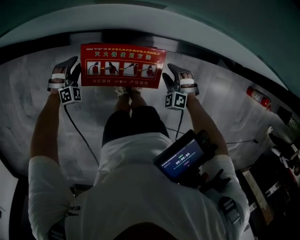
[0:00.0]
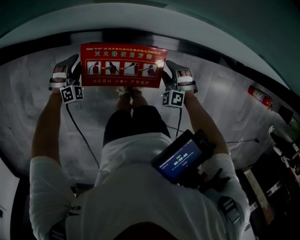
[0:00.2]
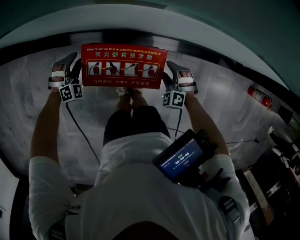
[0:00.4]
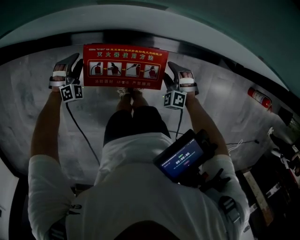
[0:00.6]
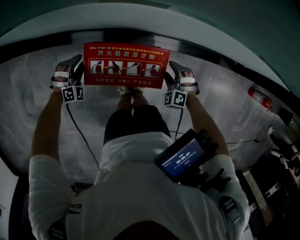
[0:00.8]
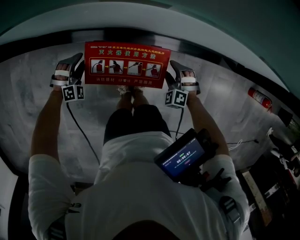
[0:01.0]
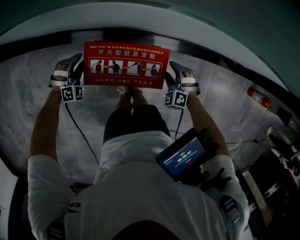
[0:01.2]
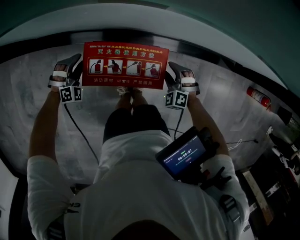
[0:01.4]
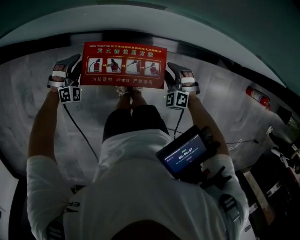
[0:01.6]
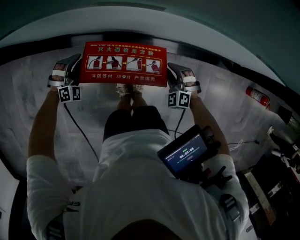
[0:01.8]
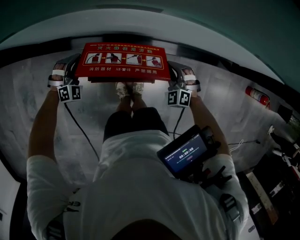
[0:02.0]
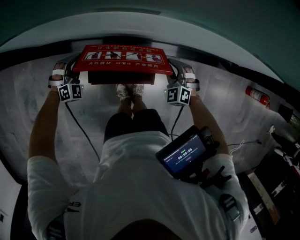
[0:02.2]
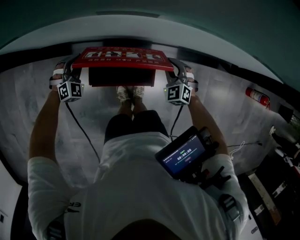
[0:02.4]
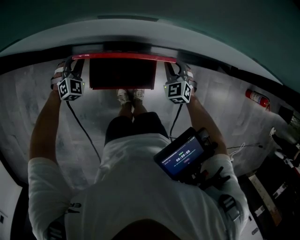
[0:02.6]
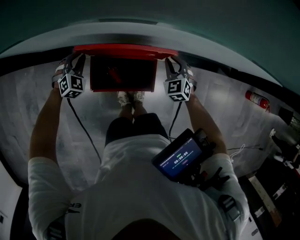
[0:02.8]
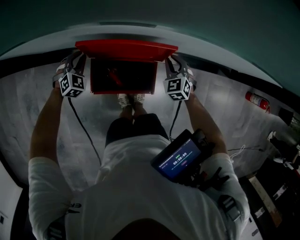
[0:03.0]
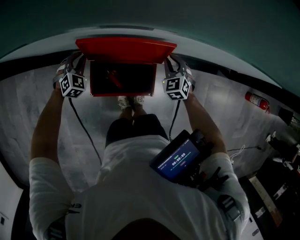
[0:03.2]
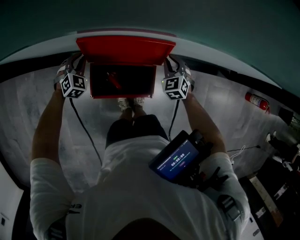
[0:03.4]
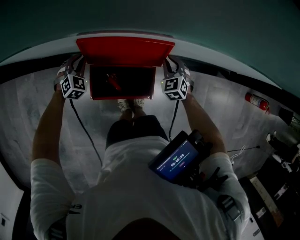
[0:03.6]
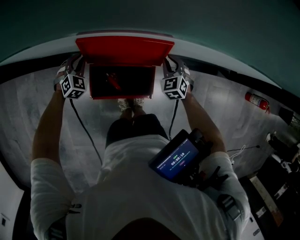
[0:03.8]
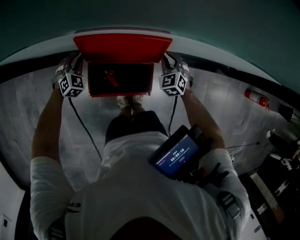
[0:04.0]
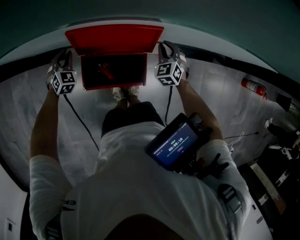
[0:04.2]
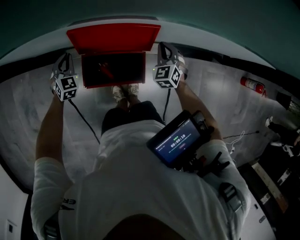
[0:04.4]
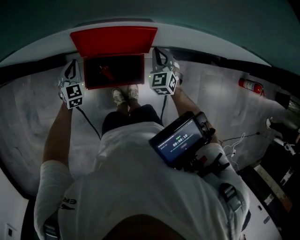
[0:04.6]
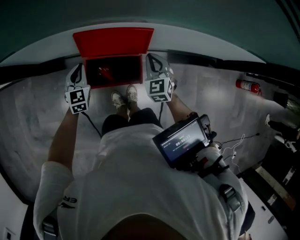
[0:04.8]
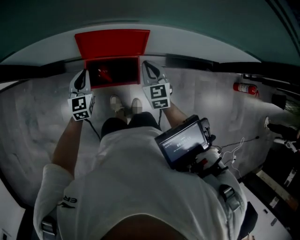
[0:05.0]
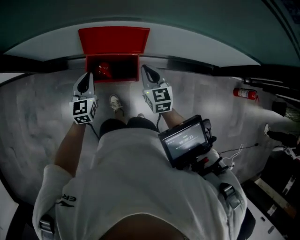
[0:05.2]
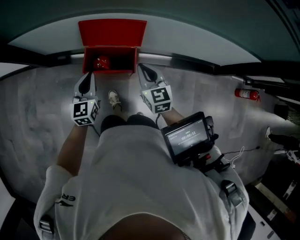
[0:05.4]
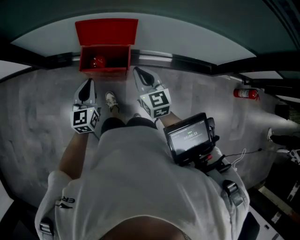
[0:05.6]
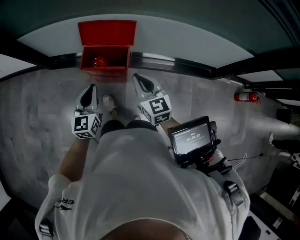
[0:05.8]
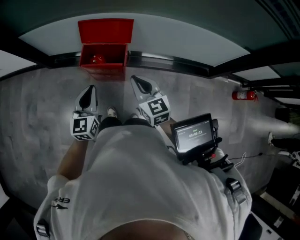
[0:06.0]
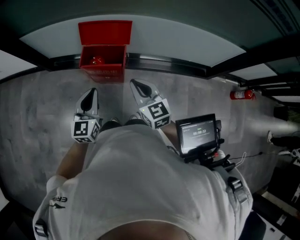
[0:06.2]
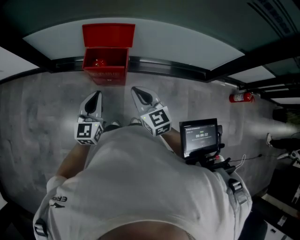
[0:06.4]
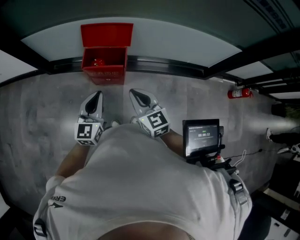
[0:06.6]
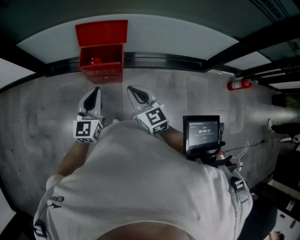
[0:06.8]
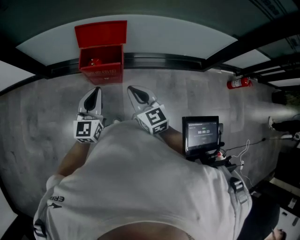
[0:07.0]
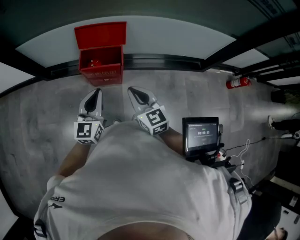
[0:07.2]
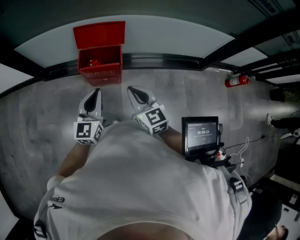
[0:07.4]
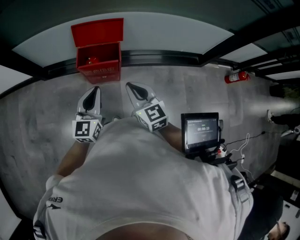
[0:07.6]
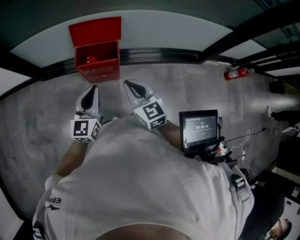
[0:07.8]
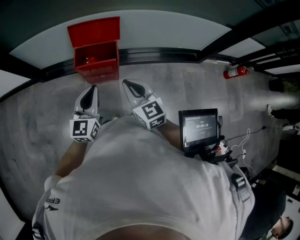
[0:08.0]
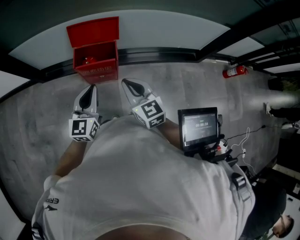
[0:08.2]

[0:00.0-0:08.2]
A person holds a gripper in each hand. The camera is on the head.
0:00.0 to 0:01.6: The grippers make only small movements.
0:01.6 to 0:03.2: The right gripper travels forward and upward by about 15 cm, swivels roughly 30 degrees, and closes up. The left gripper shifts about 10 cm forward, turns by approximately 30 degrees, and closes.
0:03.2 to 0:05.0: The left gripper is displaced upward, backward and to the right by roughly 15 cm, and rolls counterclockwise, seen from behind, by roughly 40 degrees. The right gripper travels upward and backward by roughly 15 cm, and turns by approximately 30 degrees.
0:05.0 to 0:06.6: Both grippers travel together backward and upward, some 40 cm. The right gripper turns by approximately 20 degrees.
0:06.6 to 0:08.2: The grippers move only a little.

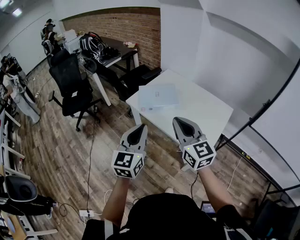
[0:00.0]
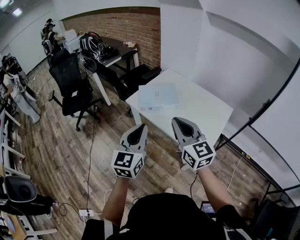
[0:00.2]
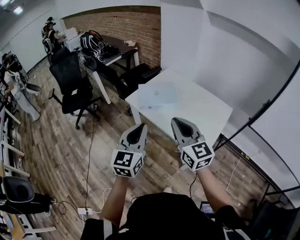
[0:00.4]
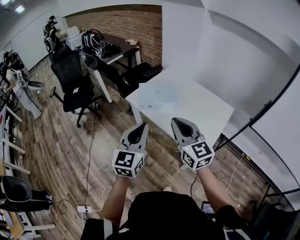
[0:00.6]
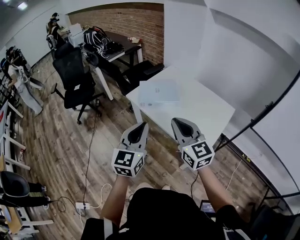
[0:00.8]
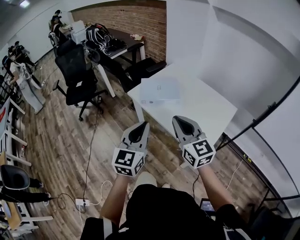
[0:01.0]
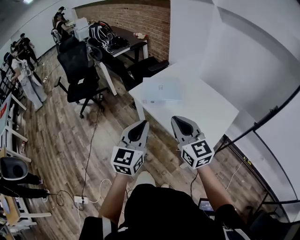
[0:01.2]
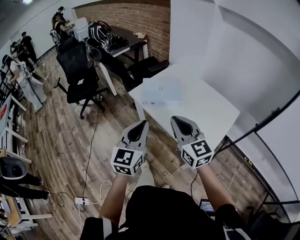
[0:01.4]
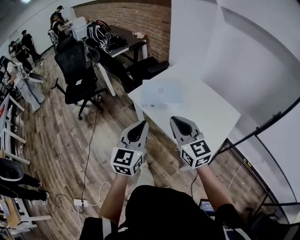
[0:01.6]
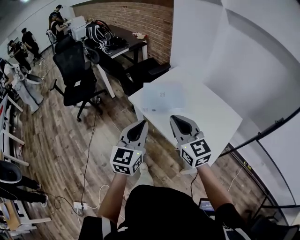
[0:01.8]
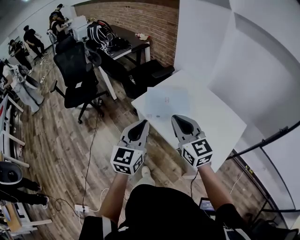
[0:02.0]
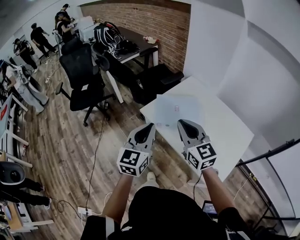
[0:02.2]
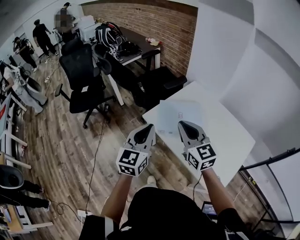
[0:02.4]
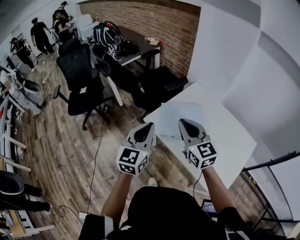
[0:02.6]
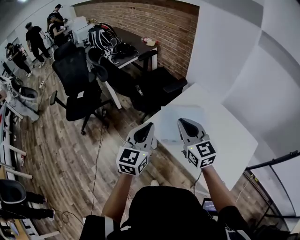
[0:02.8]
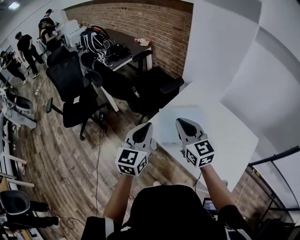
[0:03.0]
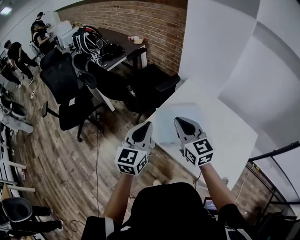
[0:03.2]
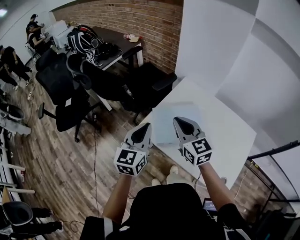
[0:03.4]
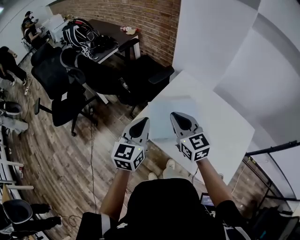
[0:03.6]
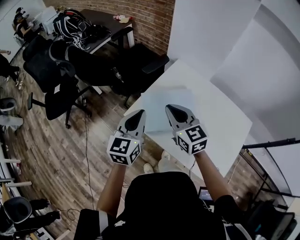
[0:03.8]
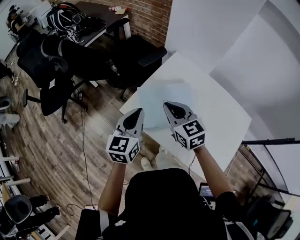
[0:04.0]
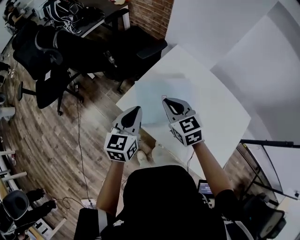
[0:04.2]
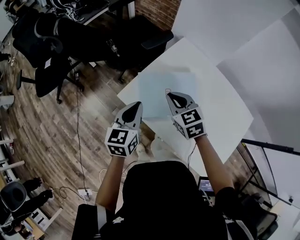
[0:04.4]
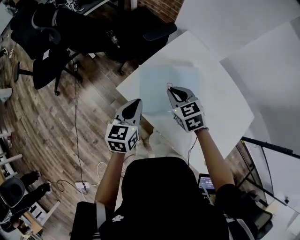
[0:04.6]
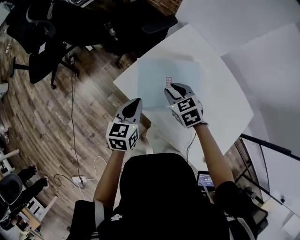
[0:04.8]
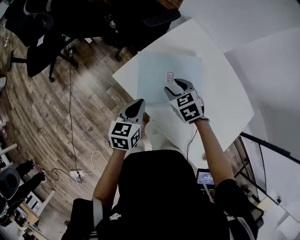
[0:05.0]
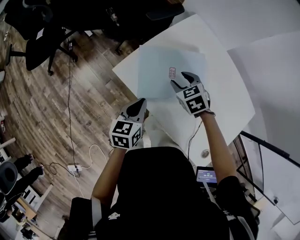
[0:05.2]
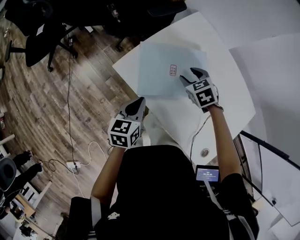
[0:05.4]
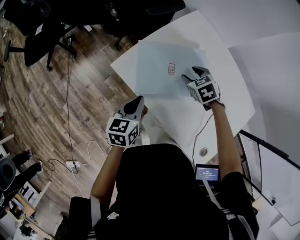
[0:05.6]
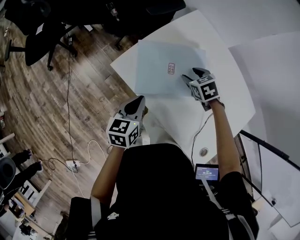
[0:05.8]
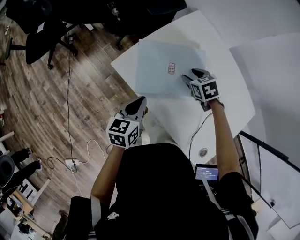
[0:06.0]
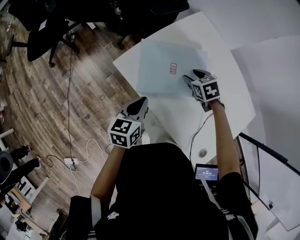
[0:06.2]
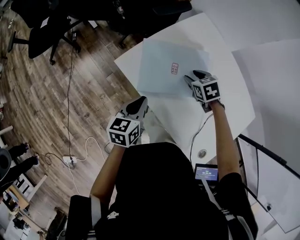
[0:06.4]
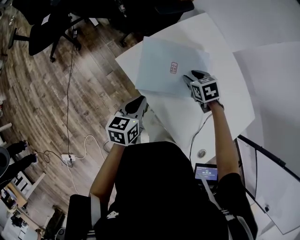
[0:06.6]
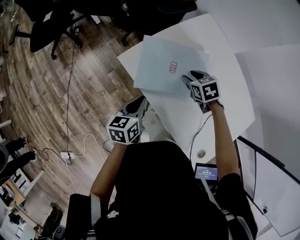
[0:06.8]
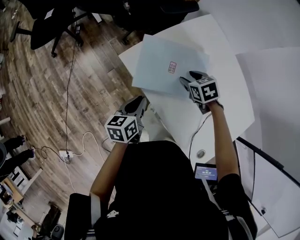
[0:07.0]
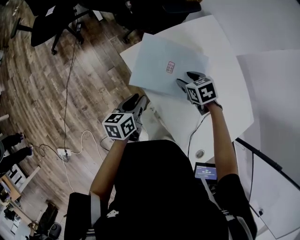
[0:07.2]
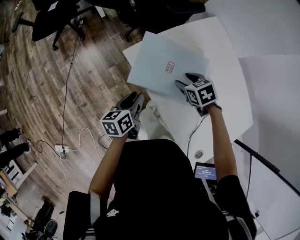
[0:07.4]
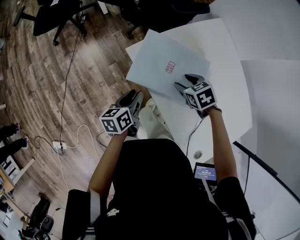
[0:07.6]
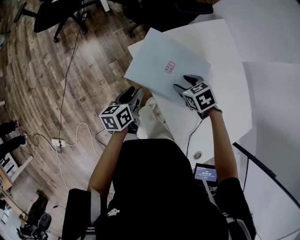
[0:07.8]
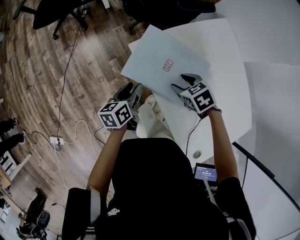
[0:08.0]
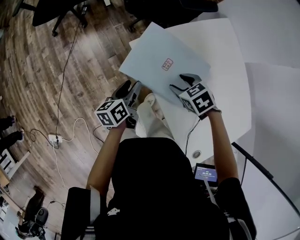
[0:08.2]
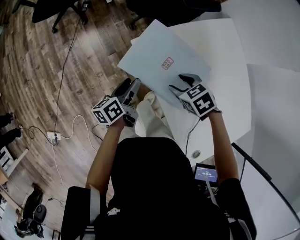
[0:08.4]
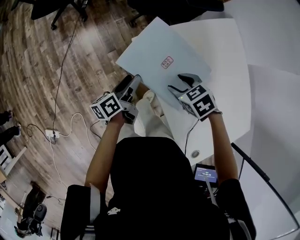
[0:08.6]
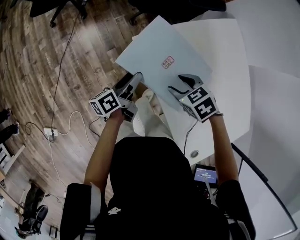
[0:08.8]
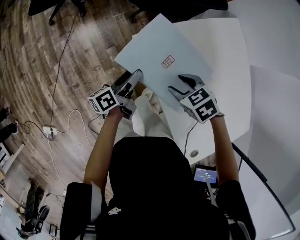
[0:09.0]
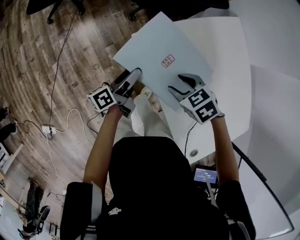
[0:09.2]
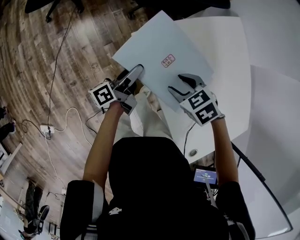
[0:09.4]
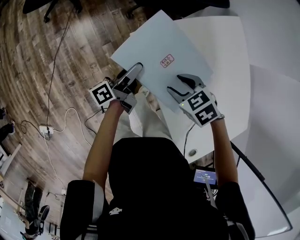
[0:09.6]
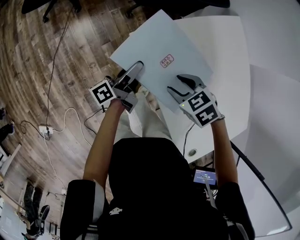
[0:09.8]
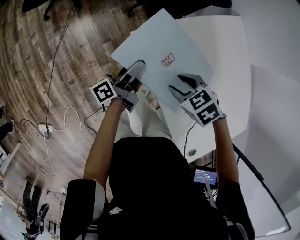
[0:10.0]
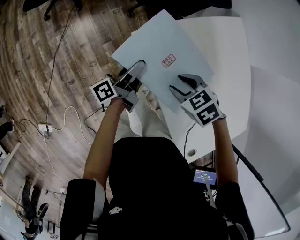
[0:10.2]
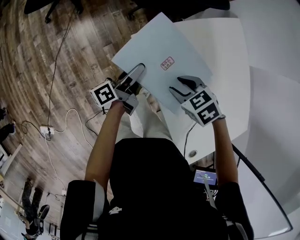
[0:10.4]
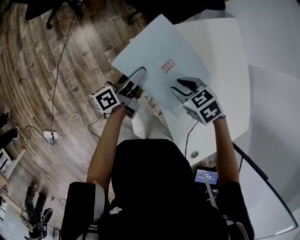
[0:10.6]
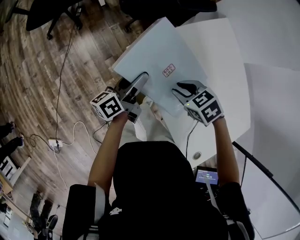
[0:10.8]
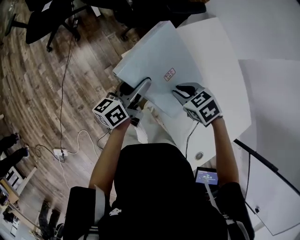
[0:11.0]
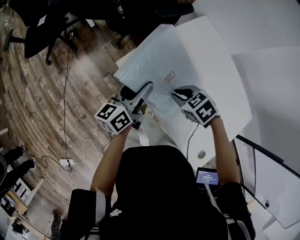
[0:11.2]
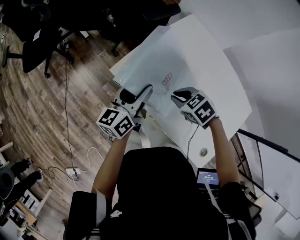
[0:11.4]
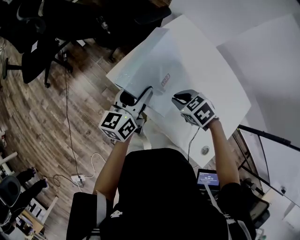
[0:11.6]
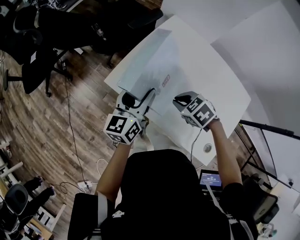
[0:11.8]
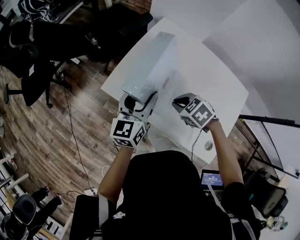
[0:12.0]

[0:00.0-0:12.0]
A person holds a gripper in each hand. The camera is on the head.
0:00.0 to 0:01.6: The left gripper ends up approximately 5 cm from where it was. The right gripper shifts roughly 5 cm forward.
0:01.6 to 0:03.0: The two grippers go some 30 cm forward.
0:03.0 to 0:04.4: The left gripper goes some 20 cm downward, to the right and forward. Meanwhile the right gripper shifts approximately 20 cm downward and forward, and turns by approximately 30 degrees.
0:04.4 to 0:06.0: The right gripper goes some 20 cm downward and to the right, changes its angle by some 30 degrees, and opens its fingers; the left gripper heads downward and backward, covering approximately 15 cm.
0:06.0 to 0:07.6: The left gripper shifts approximately 10 cm to the left and downward, changes its angle by roughly 30 degrees, and opens its fingers, while the right gripper travels to the left by approximately 10 cm.
0:07.6 to 0:09.0: The right gripper travels to the left by some 5 cm. The left gripper heads forward, covering about 5 cm, turns by approximately 30 degrees, and opens its fingers.
0:09.0 to 0:10.4: The grippers stay close to where they were, moving slightly.
0:10.4 to 0:12.0: The right gripper goes roughly 15 cm to the right, upward and backward, changes its angle by roughly 30 degrees, and closes. The left gripper goes some 25 cm upward and to the right, and twists roughly 60 degrees clockwise, seen from behind.

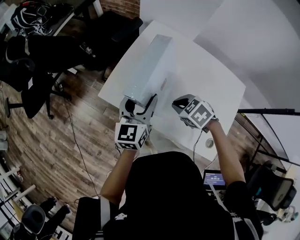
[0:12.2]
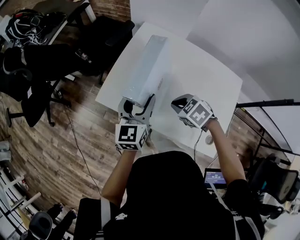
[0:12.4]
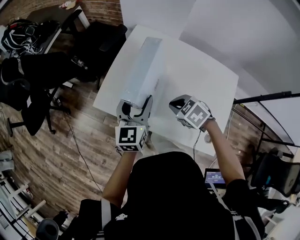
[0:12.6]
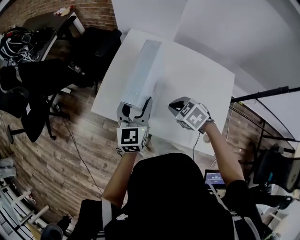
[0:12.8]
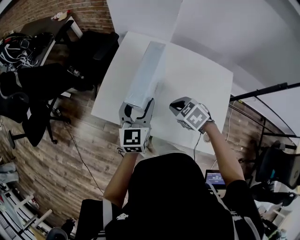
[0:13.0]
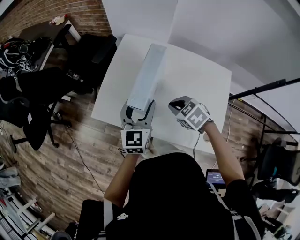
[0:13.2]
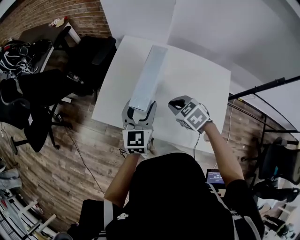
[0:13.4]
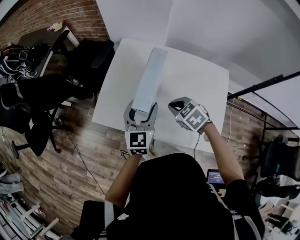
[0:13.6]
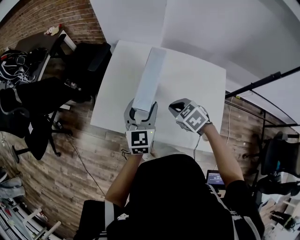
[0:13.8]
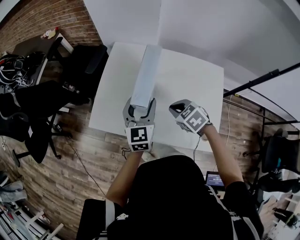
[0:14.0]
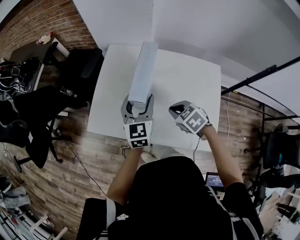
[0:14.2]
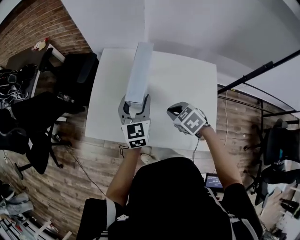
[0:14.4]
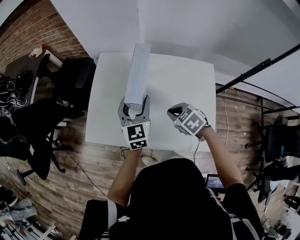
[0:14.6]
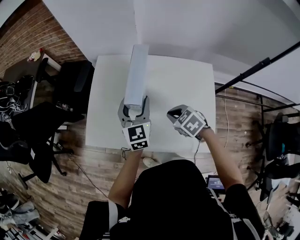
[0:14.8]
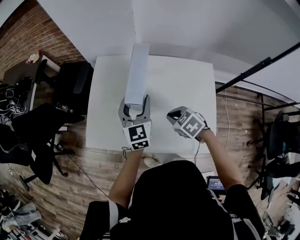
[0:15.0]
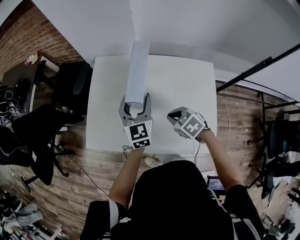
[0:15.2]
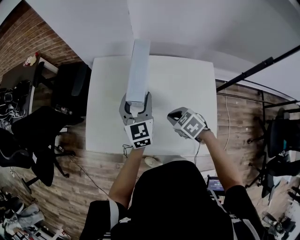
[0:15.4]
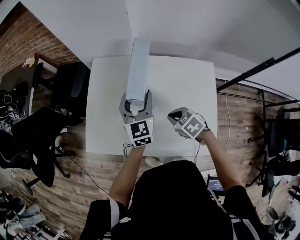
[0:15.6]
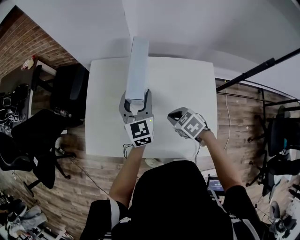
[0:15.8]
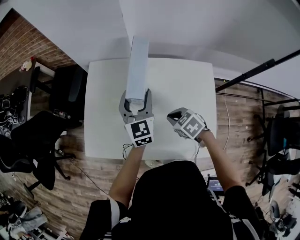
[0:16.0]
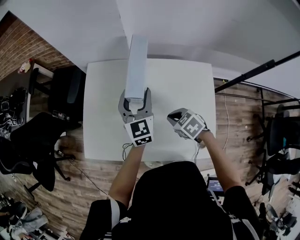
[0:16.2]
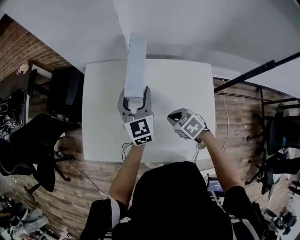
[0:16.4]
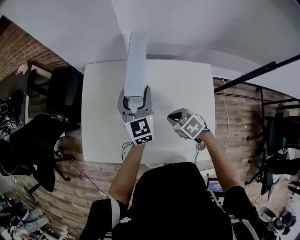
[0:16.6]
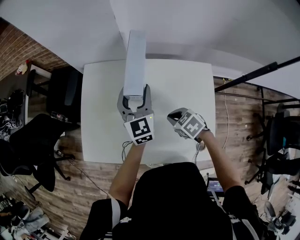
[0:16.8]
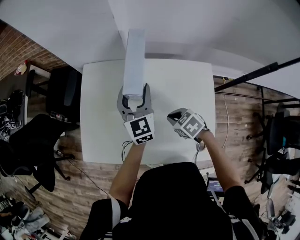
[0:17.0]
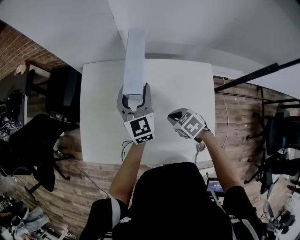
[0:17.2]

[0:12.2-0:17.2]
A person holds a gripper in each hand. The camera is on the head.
0:12.2 to 0:13.8: The grippers both shift to the right by some 10 cm.
0:13.8 to 0:15.6: The right gripper is displaced to the right by about 10 cm. Meanwhile the left gripper shifts about 15 cm to the right and forward.
0:15.6 to 0:17.2: Both grippers move to the right, roughly 5 cm.
